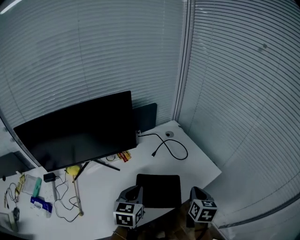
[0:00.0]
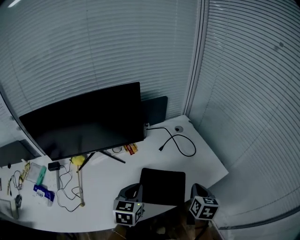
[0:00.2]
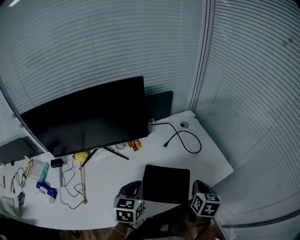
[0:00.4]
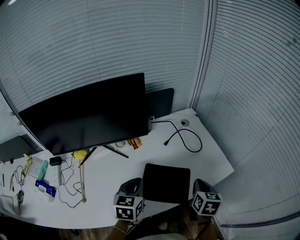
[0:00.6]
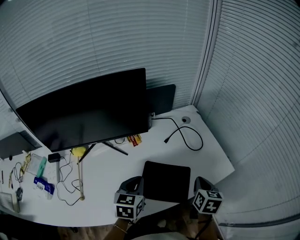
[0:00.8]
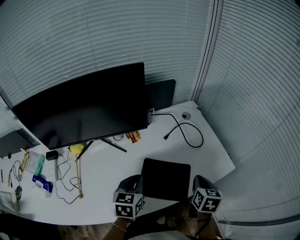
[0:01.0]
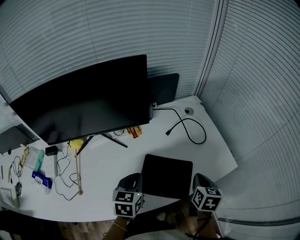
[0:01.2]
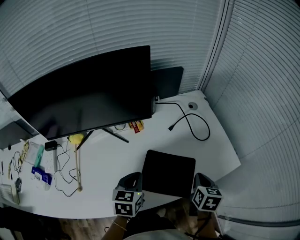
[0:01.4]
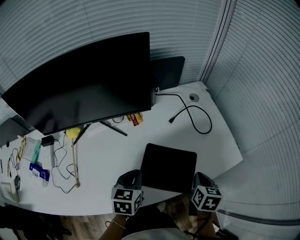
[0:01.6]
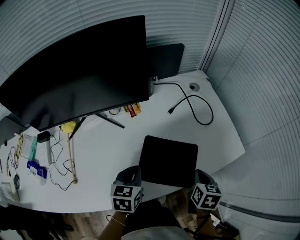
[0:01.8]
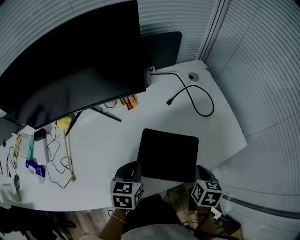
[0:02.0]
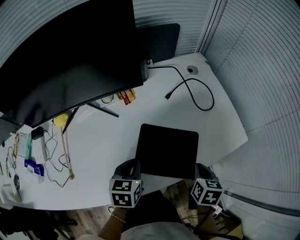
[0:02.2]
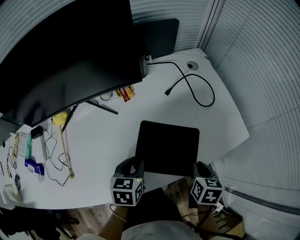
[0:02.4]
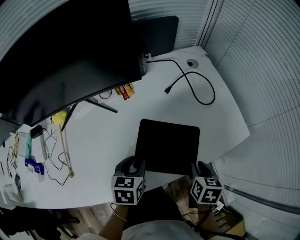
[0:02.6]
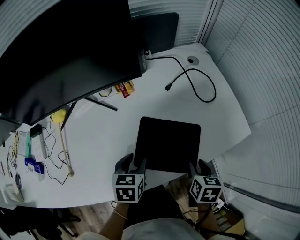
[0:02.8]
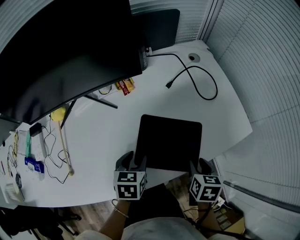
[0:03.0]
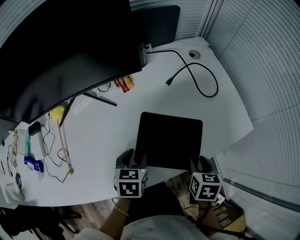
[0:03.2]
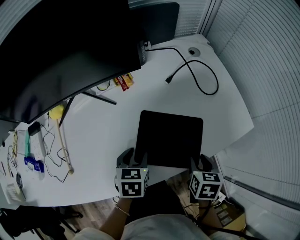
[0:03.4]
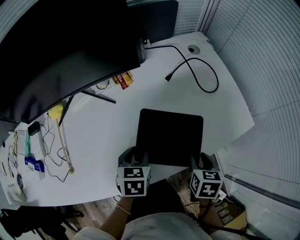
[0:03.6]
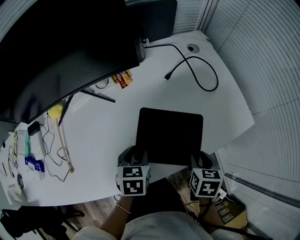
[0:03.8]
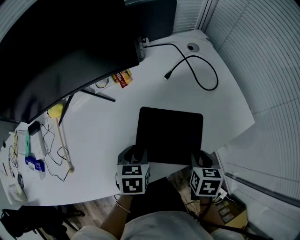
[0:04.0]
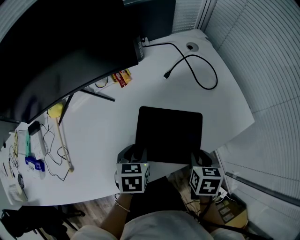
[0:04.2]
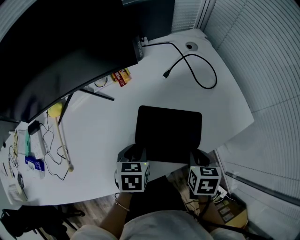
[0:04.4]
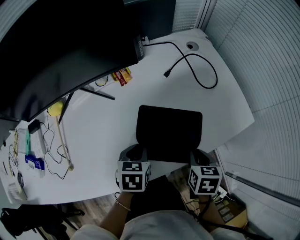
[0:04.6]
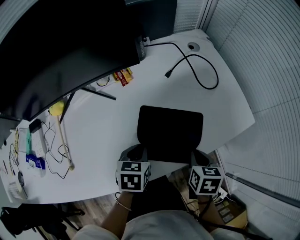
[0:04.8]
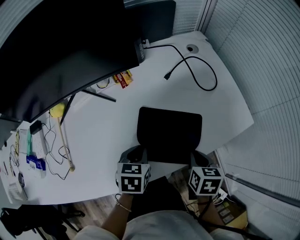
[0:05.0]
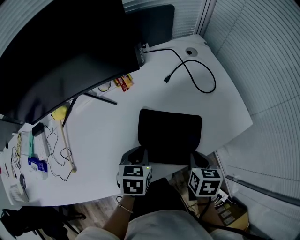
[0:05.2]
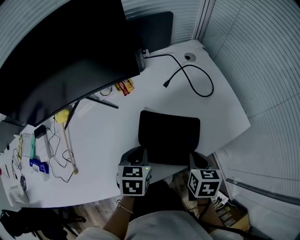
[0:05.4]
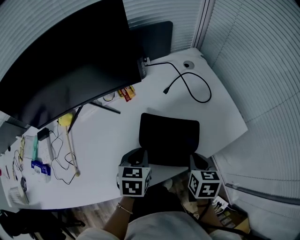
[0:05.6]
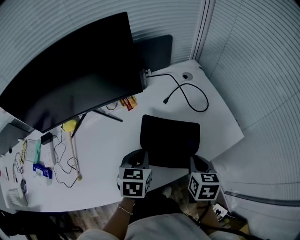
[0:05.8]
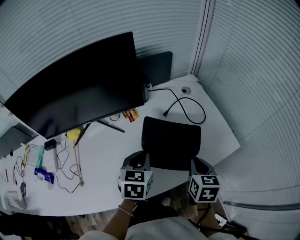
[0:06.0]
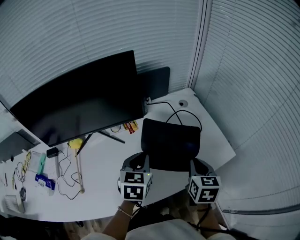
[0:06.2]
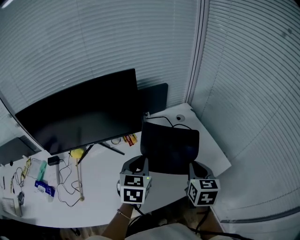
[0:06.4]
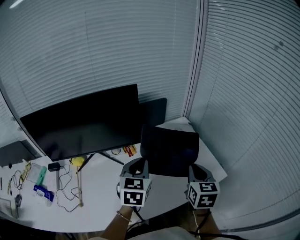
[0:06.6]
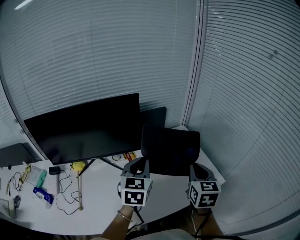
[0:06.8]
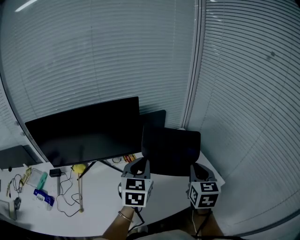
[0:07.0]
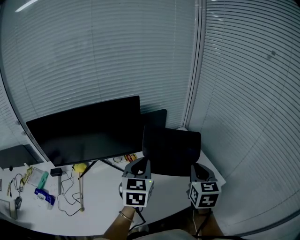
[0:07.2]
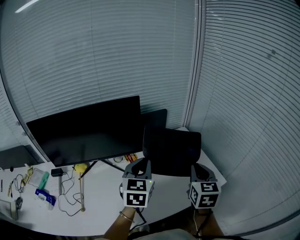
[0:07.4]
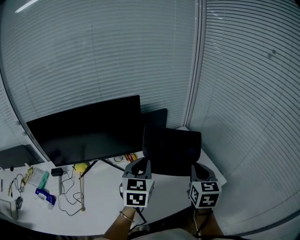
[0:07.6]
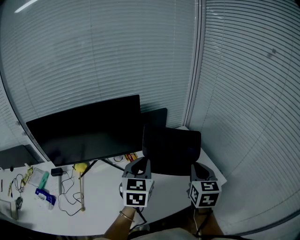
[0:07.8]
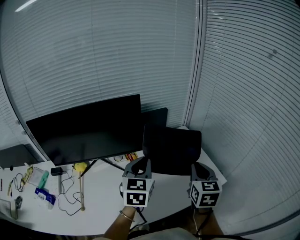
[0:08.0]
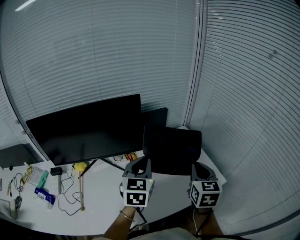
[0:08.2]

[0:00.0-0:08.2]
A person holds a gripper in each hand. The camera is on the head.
0:00.0 to 0:01.6: The two grippers go about 10 cm downward.
0:01.6 to 0:03.2: The grippers both shift downward by roughly 5 cm. The right gripper opens up. The left gripper opens its fingers.
0:03.2 to 0:05.0: The left gripper closes up, while the right gripper closes up.
0:05.0 to 0:06.6: The grippers both shift upward and forward by approximately 25 cm. The right gripper tilts its fingers approximately 30 degrees upward. Meanwhile the left gripper tilts its fingers some 30 degrees upward.
0:06.6 to 0:08.2: The grippers make only small movements.

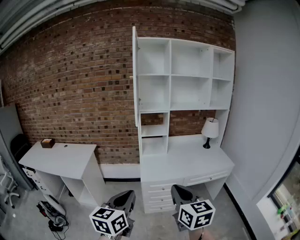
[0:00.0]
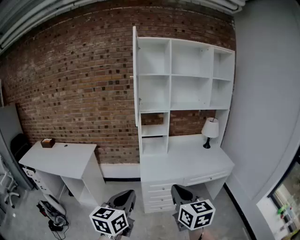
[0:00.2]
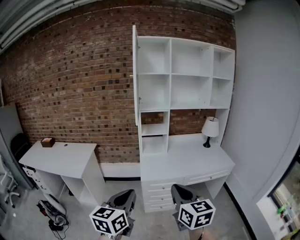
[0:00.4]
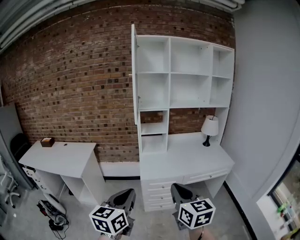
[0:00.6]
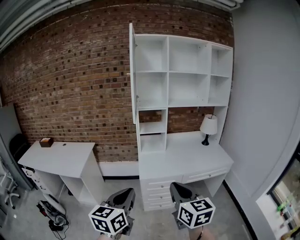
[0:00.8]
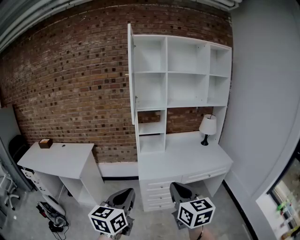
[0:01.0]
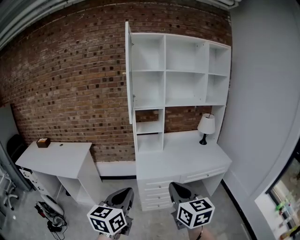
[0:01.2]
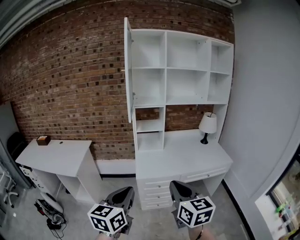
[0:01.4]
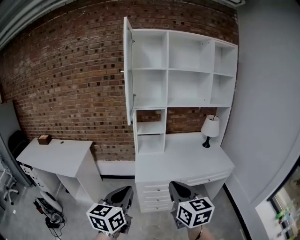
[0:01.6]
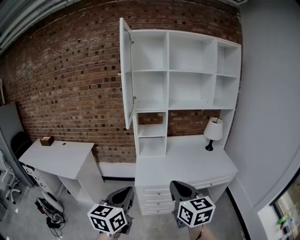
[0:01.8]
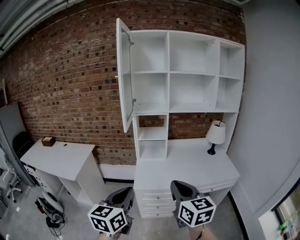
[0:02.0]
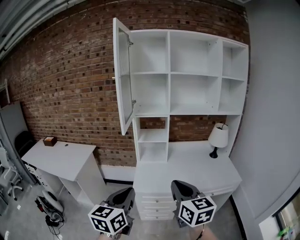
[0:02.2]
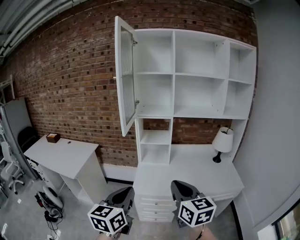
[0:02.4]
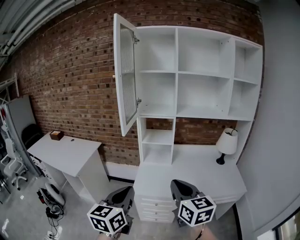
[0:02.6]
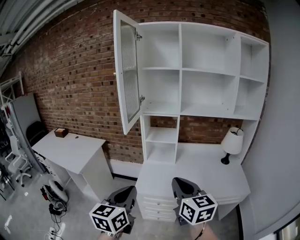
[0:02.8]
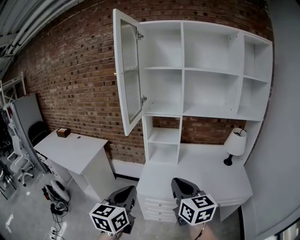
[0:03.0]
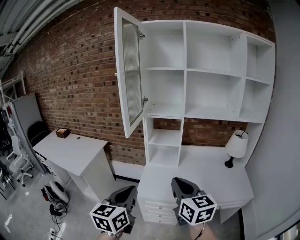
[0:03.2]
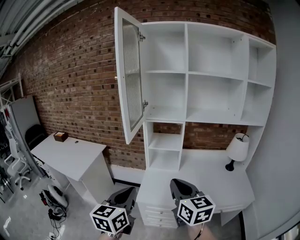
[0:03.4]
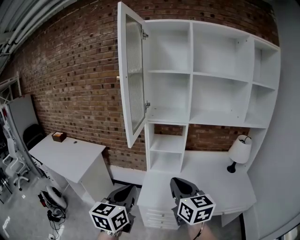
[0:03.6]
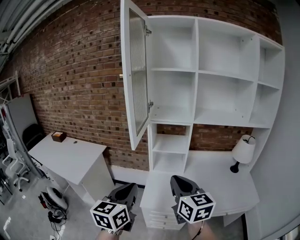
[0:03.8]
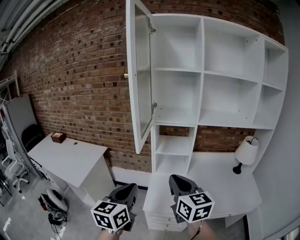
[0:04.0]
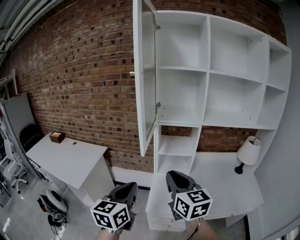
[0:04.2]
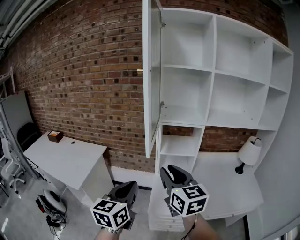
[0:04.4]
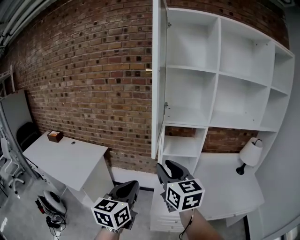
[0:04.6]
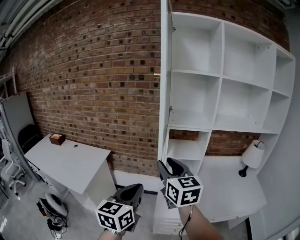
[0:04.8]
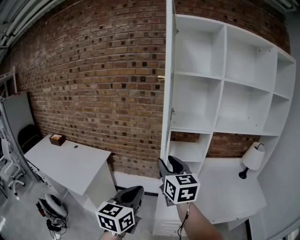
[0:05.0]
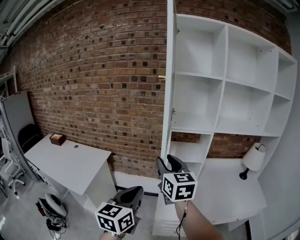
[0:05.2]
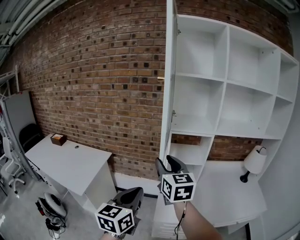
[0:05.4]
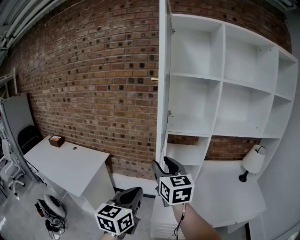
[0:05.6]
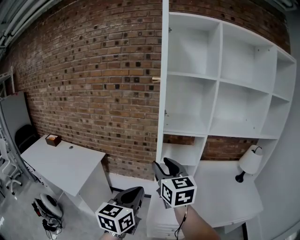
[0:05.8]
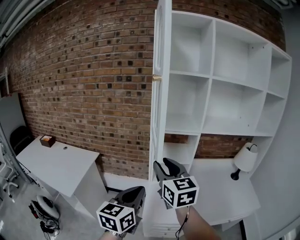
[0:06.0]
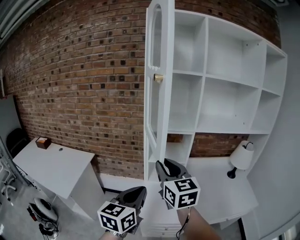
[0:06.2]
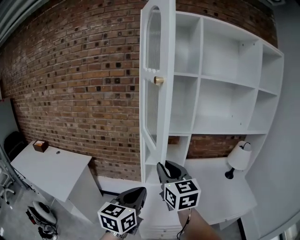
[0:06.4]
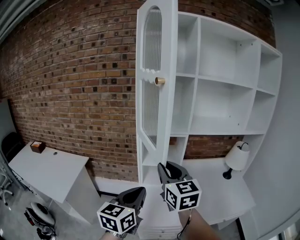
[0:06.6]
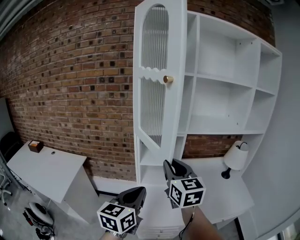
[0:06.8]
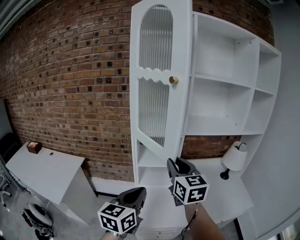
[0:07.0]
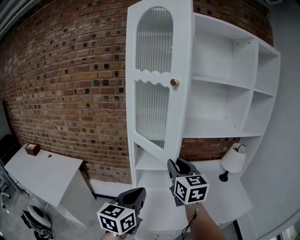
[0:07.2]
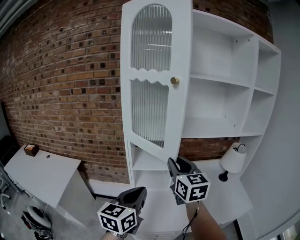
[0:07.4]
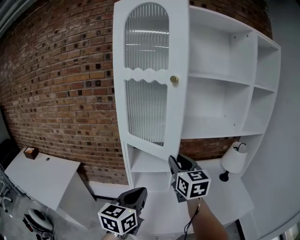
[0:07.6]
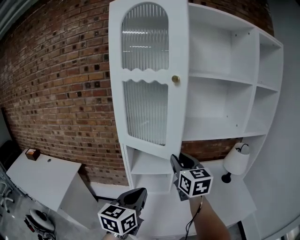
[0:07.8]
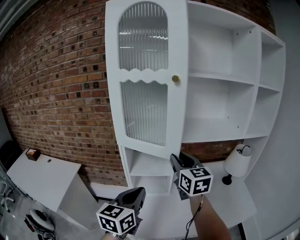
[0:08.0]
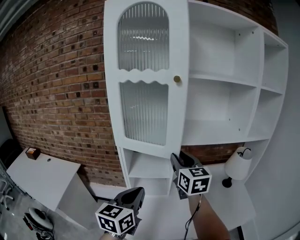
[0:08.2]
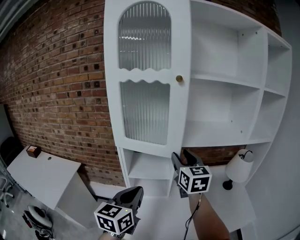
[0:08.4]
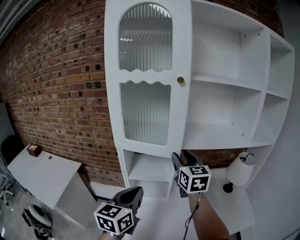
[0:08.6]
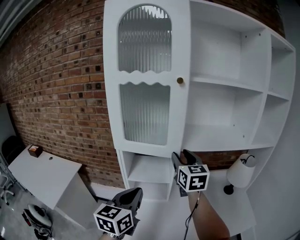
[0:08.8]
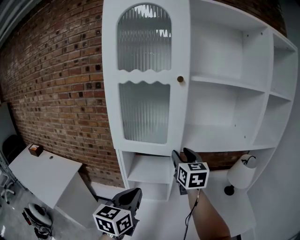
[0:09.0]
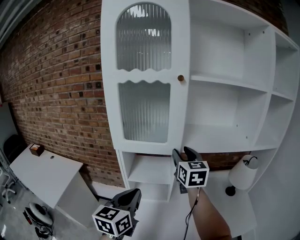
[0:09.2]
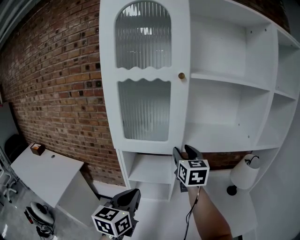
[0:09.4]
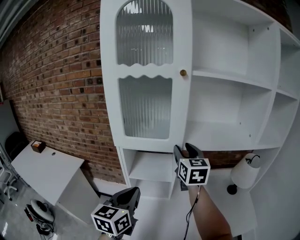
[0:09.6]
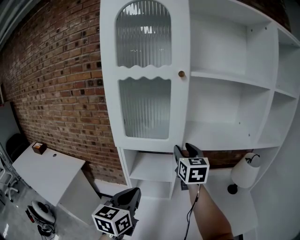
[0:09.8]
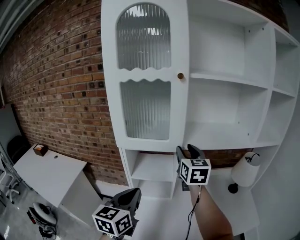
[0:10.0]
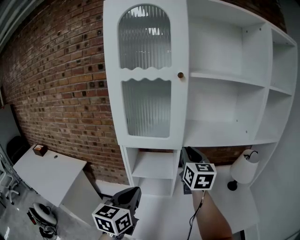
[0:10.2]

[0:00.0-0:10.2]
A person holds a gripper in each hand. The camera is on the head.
0:00.0 to 0:01.4: There are only small adjustments of the grippers.
0:01.4 to 0:03.0: Both grippers travel together forward and to the right, approximately 25 cm.
0:03.0 to 0:04.4: The two grippers go approximately 25 cm forward and to the left. The right gripper opens its fingers.
0:04.4 to 0:05.8: The right gripper moves forward, some 10 cm.
0:05.8 to 0:07.2: Both grippers move to the right and forward, about 15 cm. The right gripper closes its fingers.
0:07.2 to 0:08.8: The left gripper goes roughly 10 cm forward. Meanwhile the right gripper goes about 20 cm forward and to the right, and opens.
0:08.8 to 0:10.2: The right gripper closes its fingers.

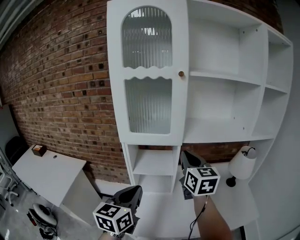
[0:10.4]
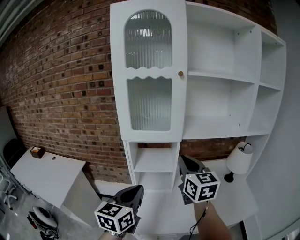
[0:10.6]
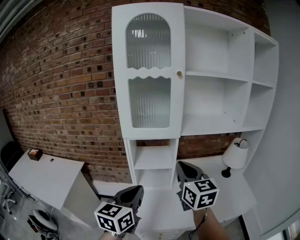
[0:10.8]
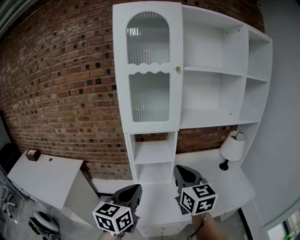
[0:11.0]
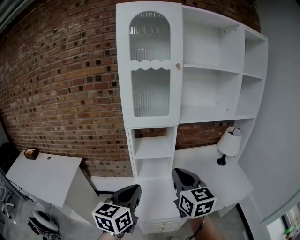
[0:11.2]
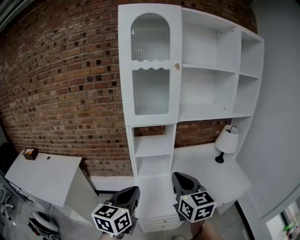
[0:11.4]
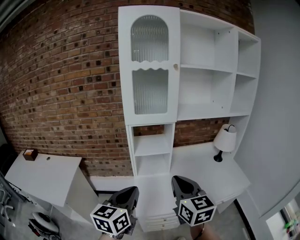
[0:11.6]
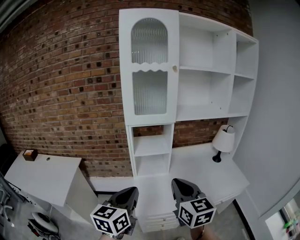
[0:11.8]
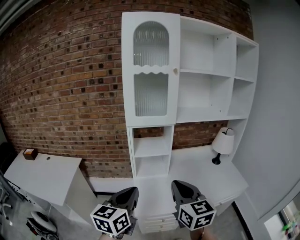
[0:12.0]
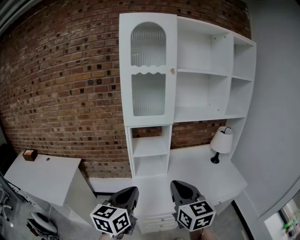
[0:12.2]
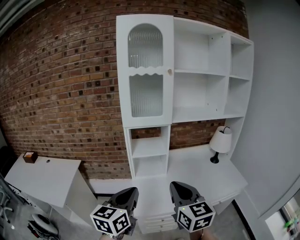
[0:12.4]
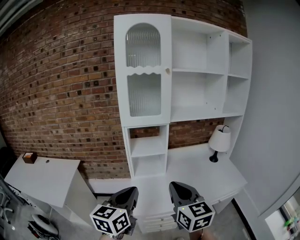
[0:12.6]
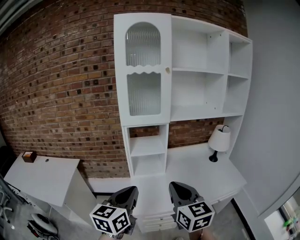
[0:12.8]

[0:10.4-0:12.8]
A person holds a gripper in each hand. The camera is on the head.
0:10.4 to 0:11.6: The right gripper is displaced backward by about 30 cm; the left gripper heads backward and to the left, covering approximately 20 cm.
0:11.6 to 0:12.8: The right gripper changes place by some 5 cm.

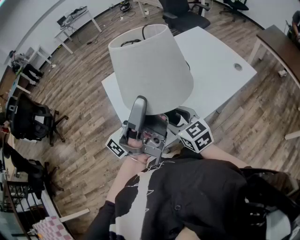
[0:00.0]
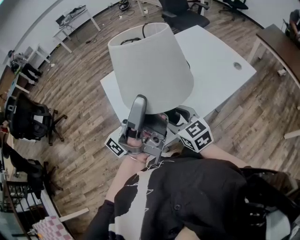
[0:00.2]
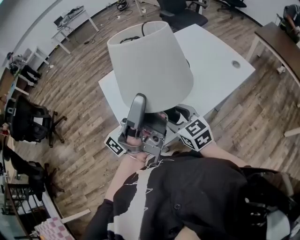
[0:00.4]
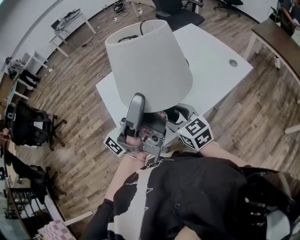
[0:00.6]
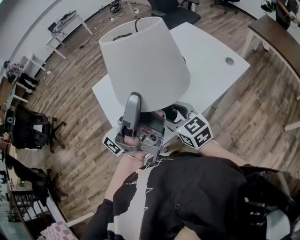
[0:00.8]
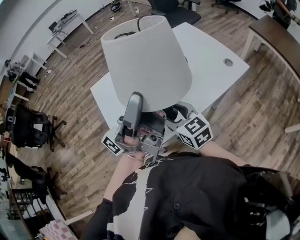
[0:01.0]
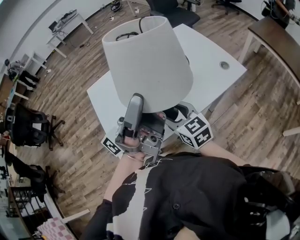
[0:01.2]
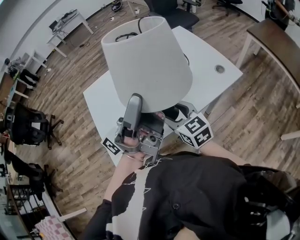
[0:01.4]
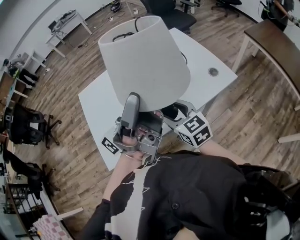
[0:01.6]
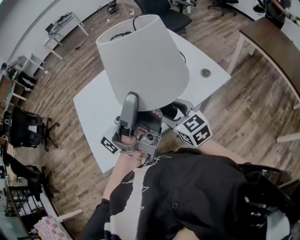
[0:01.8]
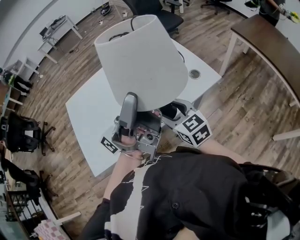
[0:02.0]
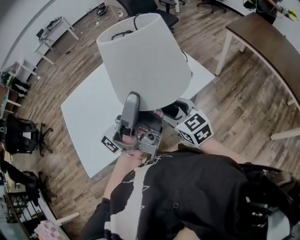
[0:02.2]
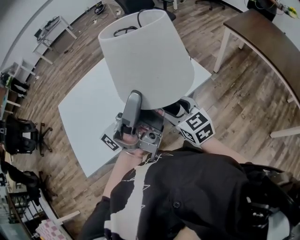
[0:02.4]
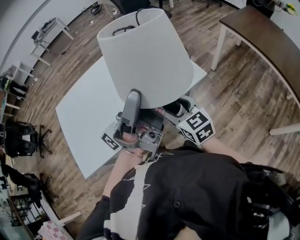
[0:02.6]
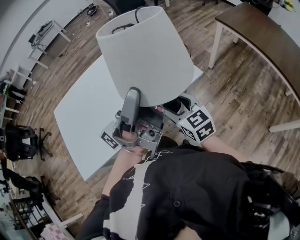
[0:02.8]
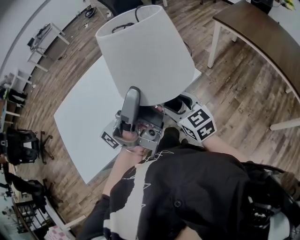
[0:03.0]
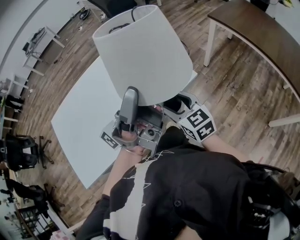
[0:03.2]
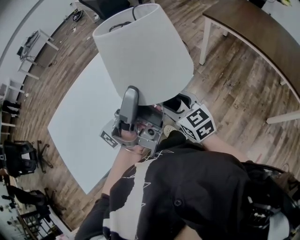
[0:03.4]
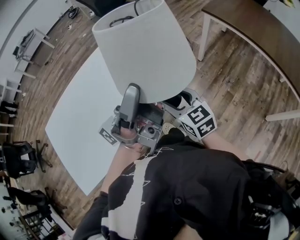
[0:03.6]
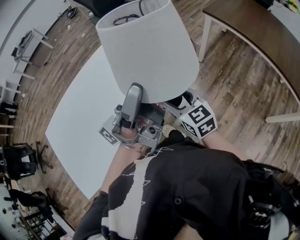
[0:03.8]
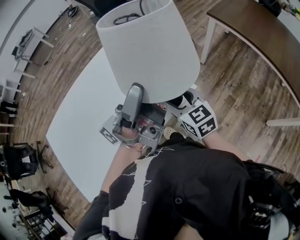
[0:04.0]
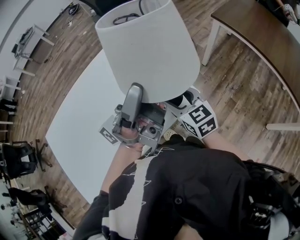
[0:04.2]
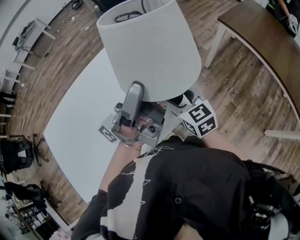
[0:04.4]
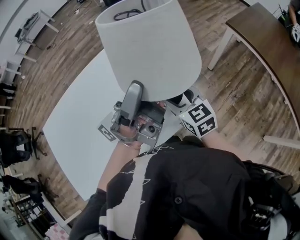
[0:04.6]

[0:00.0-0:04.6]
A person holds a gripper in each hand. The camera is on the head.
0:00.0 to 0:01.6: The right gripper travels to the right and forward by approximately 20 cm. The left gripper goes about 20 cm to the right.
0:01.6 to 0:03.0: Both grippers travel together to the right, some 25 cm.
0:03.0 to 0:04.6: The grippers both shift forward by some 20 cm.
